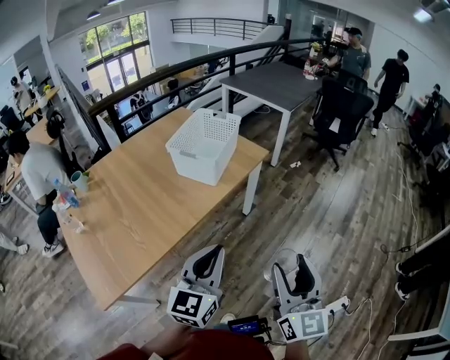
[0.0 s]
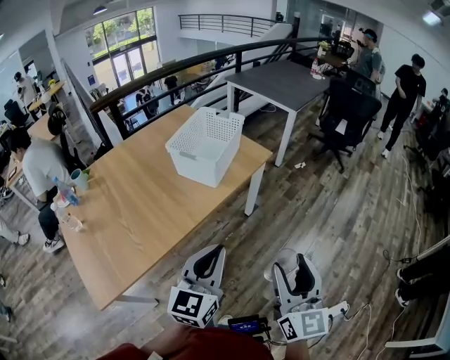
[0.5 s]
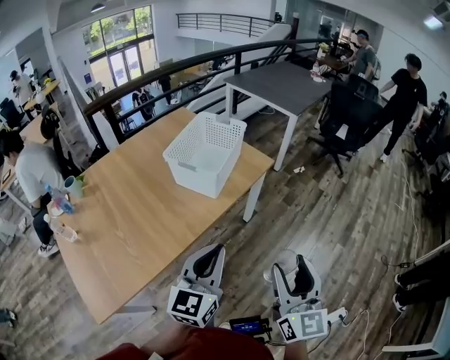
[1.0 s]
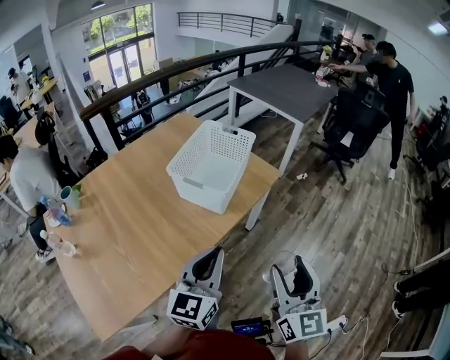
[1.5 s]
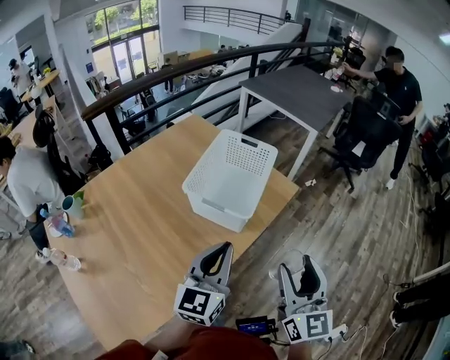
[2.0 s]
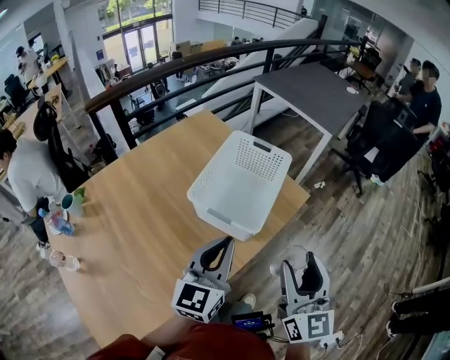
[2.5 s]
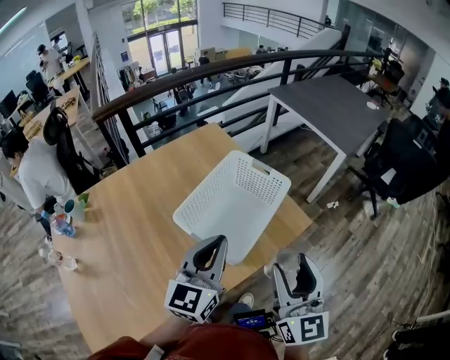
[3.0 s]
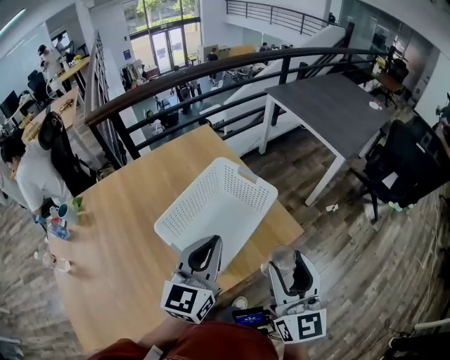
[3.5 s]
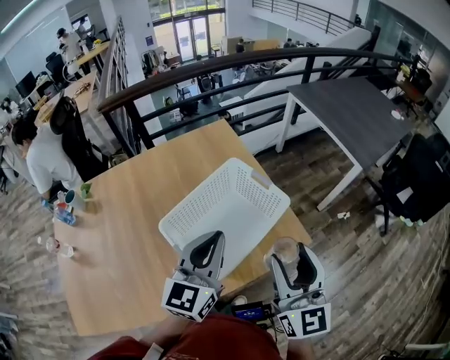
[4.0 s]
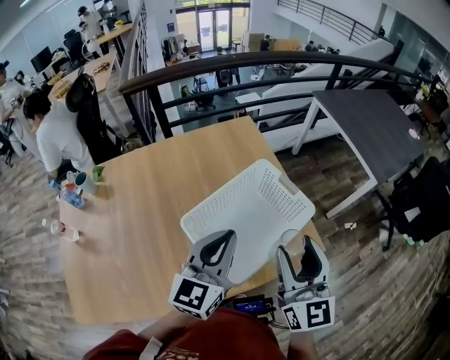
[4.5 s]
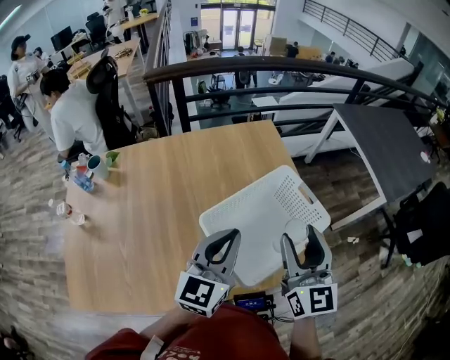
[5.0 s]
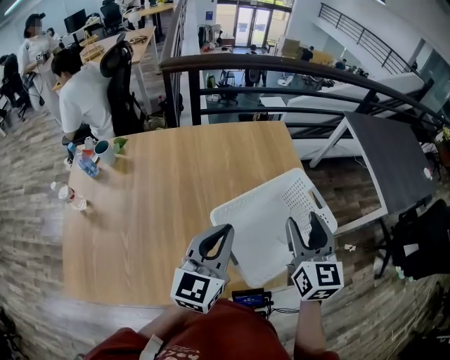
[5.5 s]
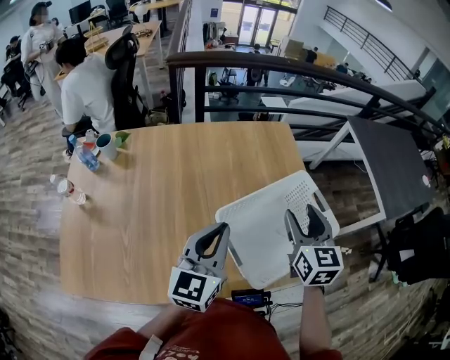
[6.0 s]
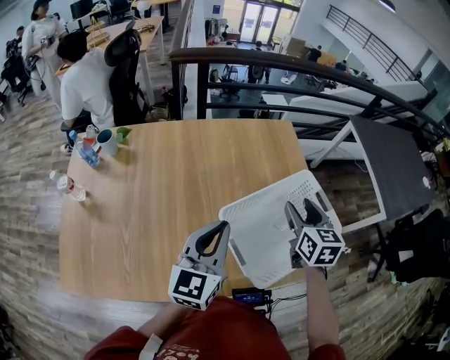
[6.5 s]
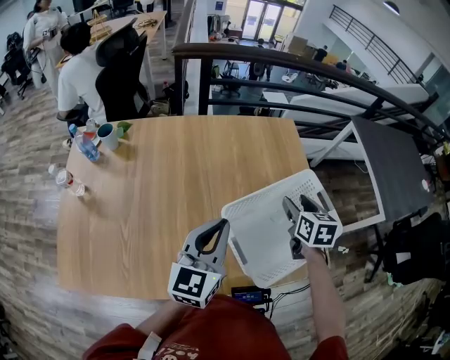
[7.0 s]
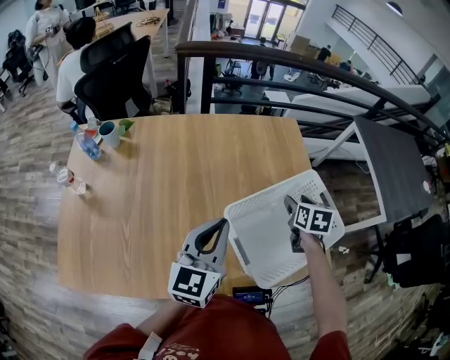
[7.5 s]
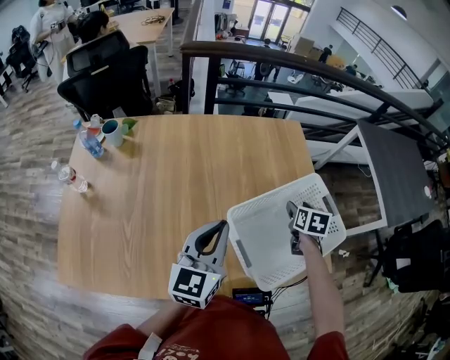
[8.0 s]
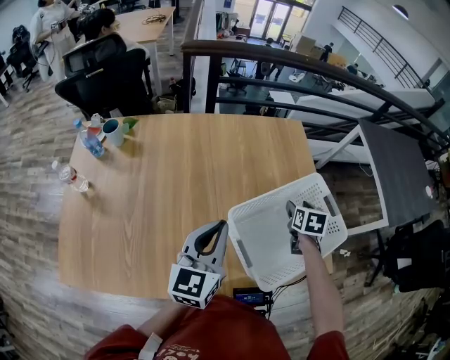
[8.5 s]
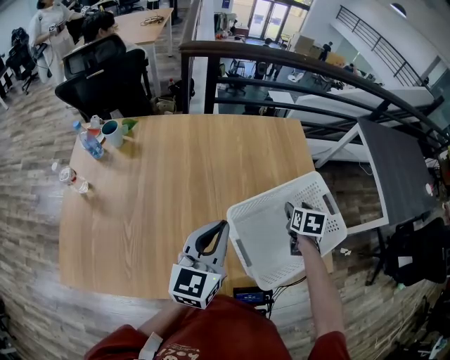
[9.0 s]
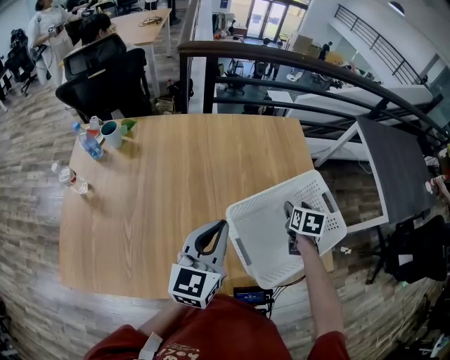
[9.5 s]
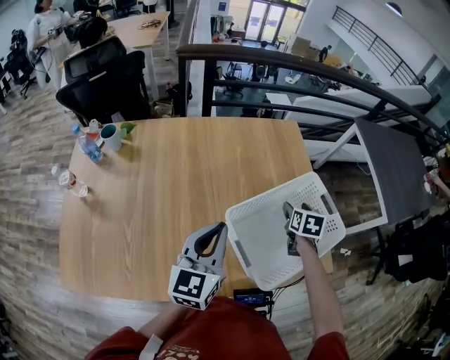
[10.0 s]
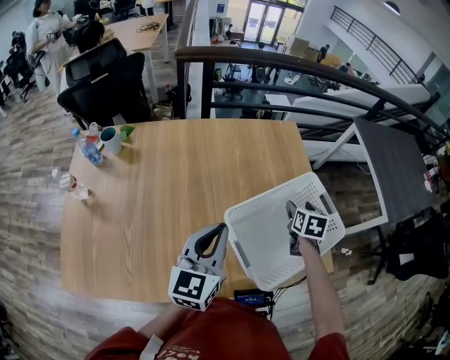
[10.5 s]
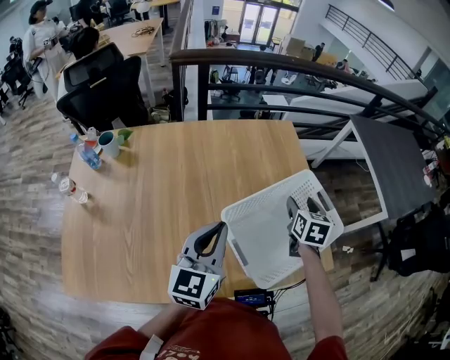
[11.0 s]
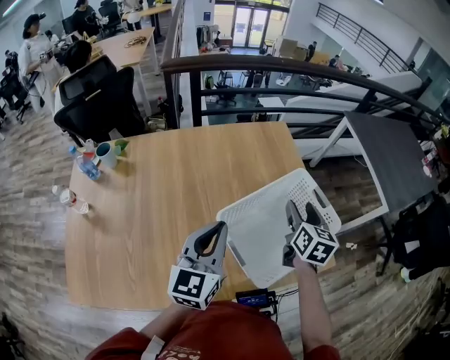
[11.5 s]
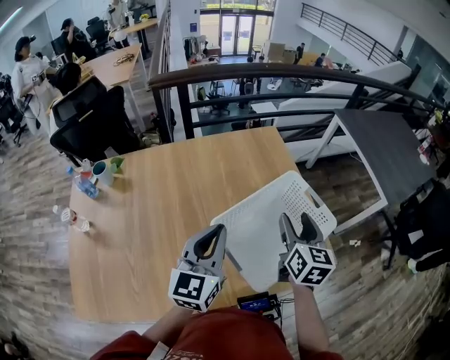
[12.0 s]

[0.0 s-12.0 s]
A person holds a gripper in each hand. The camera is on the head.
0.0 to 2.0 s: The two grippers go about 25 cm forward and to the left.
2.0 to 4.0 s: The two grippers go roughly 25 cm forward. The right gripper swivels some 20 degrees. Meanwhile the left gripper turns by some 20 degrees.
4.0 to 6.0 s: The left gripper shifts about 15 cm to the left. The right gripper shifts roughly 20 cm forward and to the left, and rotates some 20 degrees.
6.0 to 8.0 s: The right gripper goes about 20 cm downward and forward, and angles its fingers downward, by approximately 30 degrees.
8.0 to 10.0 s: There are only small adjustments of the grippers.
10.0 to 12.0 s: The right gripper shifts approximately 15 cm upward and backward, and rotates about 30 degrees.

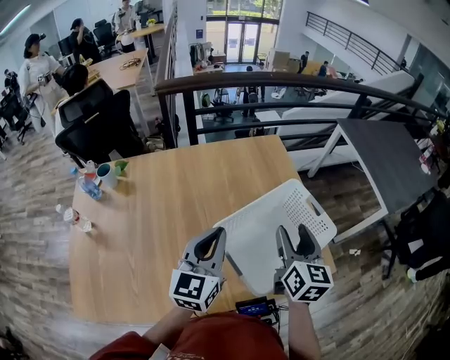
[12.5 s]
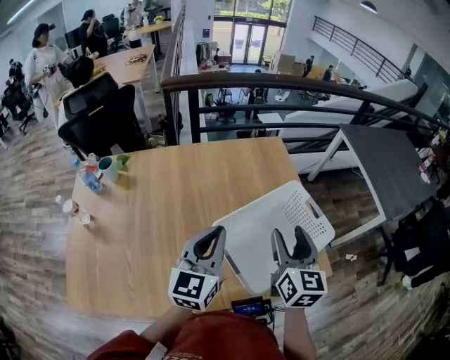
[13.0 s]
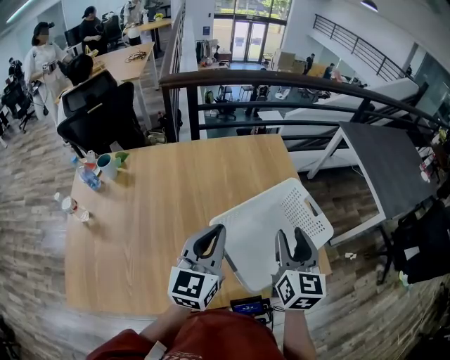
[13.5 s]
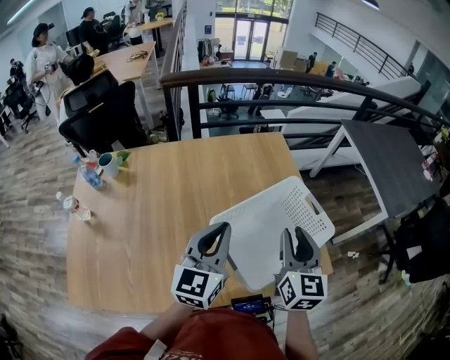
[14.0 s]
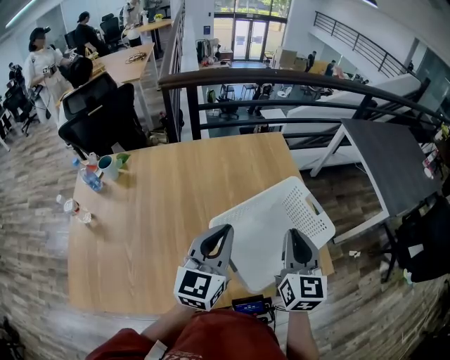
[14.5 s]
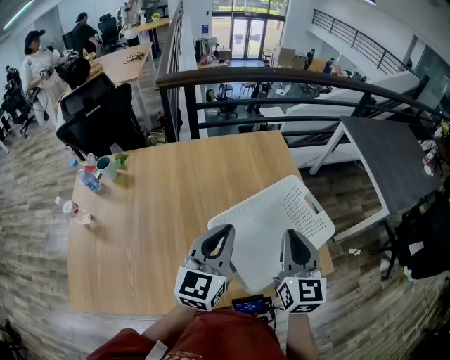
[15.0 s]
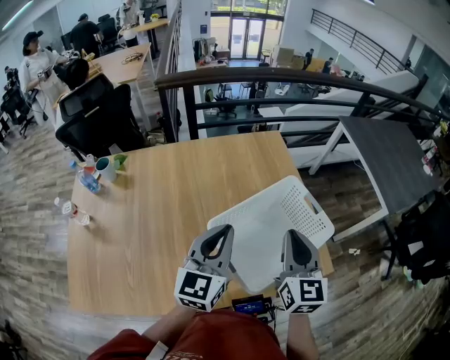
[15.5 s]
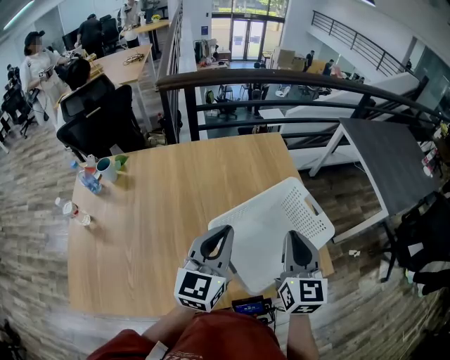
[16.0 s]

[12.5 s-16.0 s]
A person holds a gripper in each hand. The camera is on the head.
12.5 to 14.5 s: The right gripper closes its fingers.
14.5 to 16.0 s: Both grippers stay about where they are.

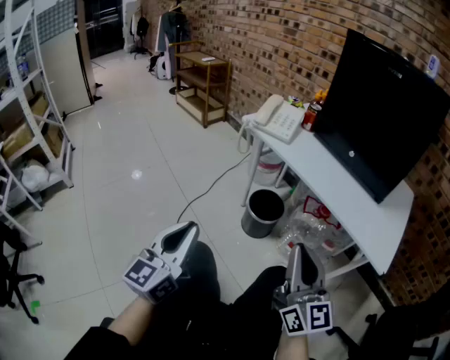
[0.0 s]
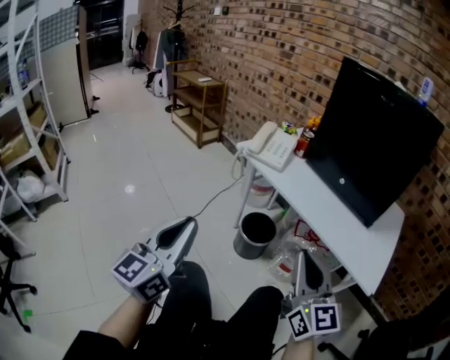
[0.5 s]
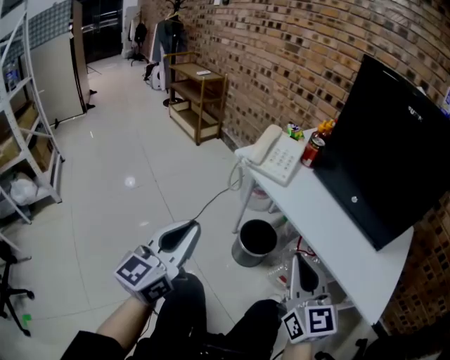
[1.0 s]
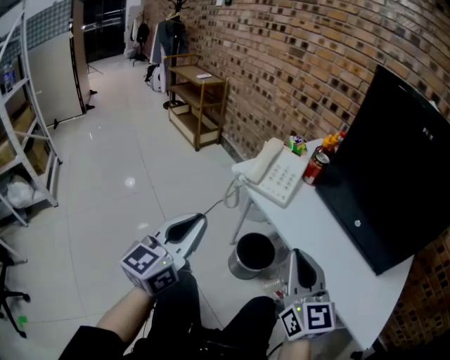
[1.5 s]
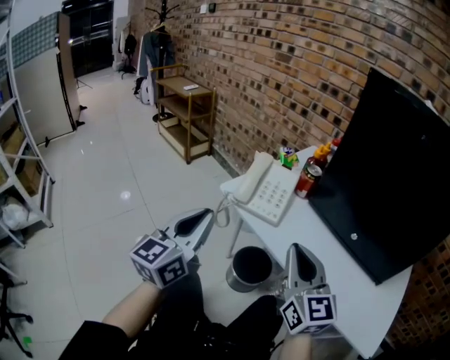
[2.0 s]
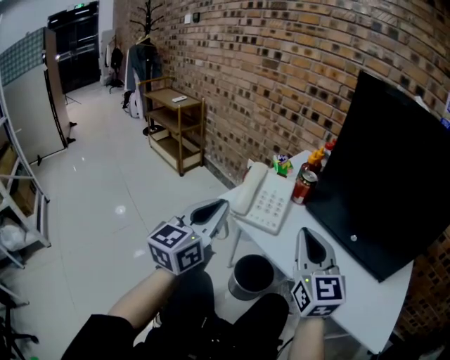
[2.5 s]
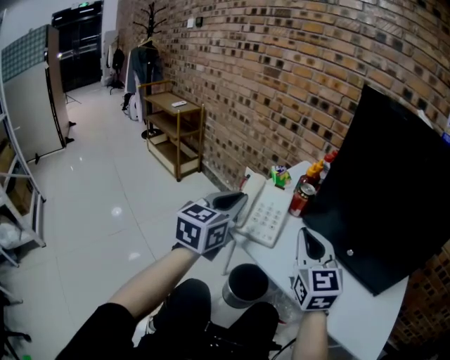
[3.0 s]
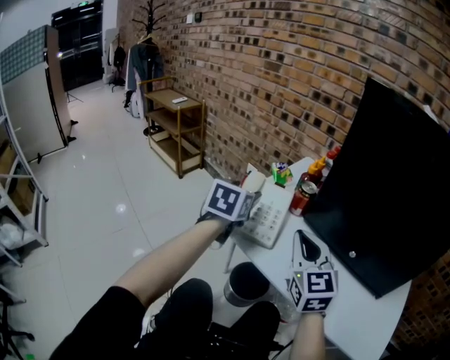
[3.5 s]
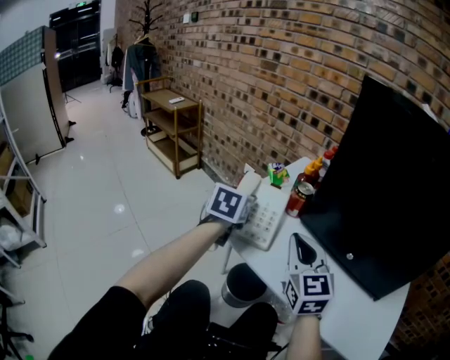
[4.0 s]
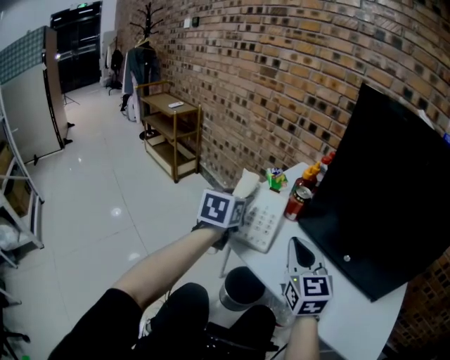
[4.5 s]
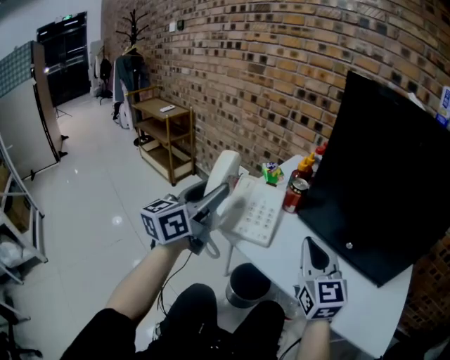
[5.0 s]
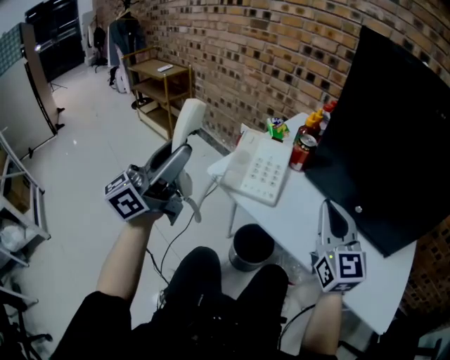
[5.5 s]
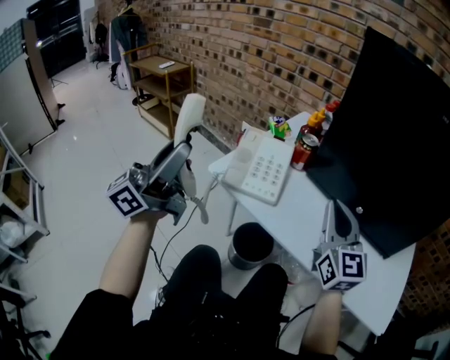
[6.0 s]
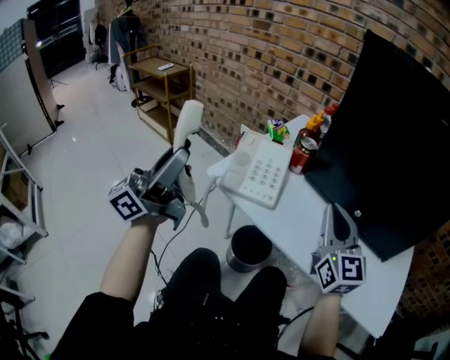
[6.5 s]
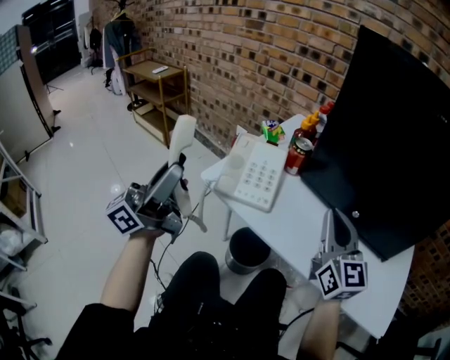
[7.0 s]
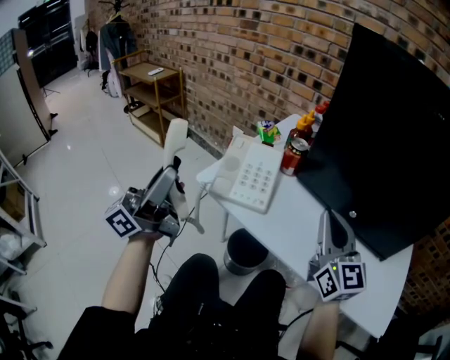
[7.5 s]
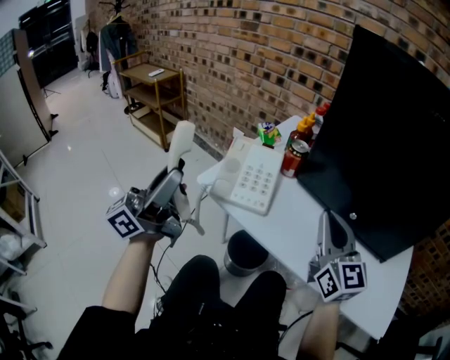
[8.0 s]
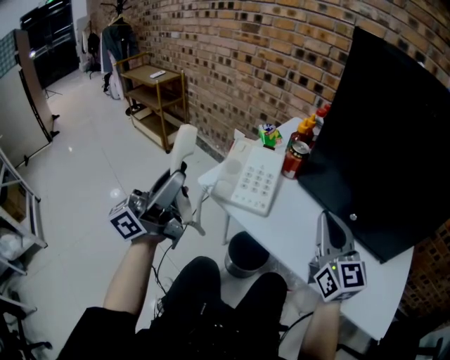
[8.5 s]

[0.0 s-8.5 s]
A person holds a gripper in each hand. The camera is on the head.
0.0 to 2.0 s: Both grippers move forward, some 30 cm.
2.0 to 4.0 s: The left gripper shifts roughly 25 cm forward, angles its fingers downward, by roughly 30 degrees, and opens its fingers. Meanwhile the right gripper moves forward, some 10 cm.
4.0 to 6.5 s: The right gripper goes approximately 5 cm to the right. Meanwhile the left gripper shifts some 25 cm backward, upward and to the left, and tips its fingers upward by about 70 degrees.
6.5 to 8.5 s: The grippers make only small movements.

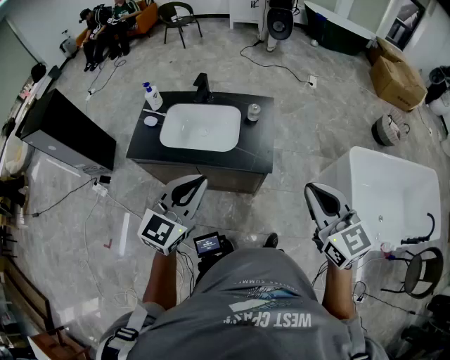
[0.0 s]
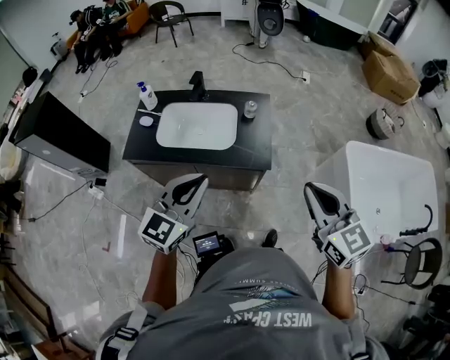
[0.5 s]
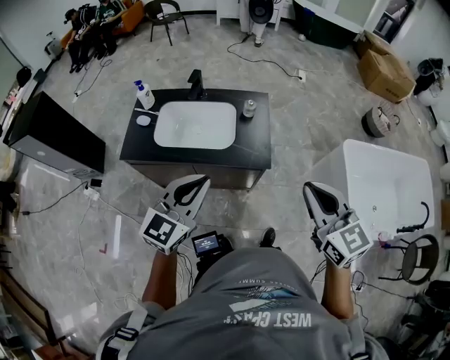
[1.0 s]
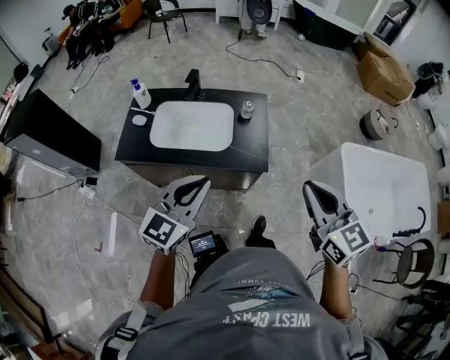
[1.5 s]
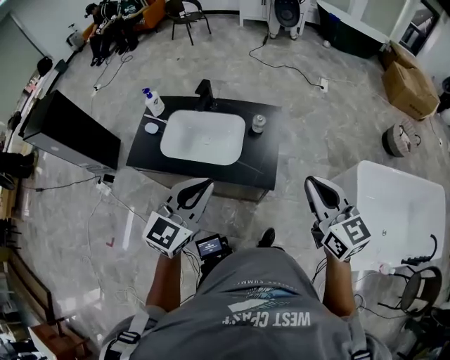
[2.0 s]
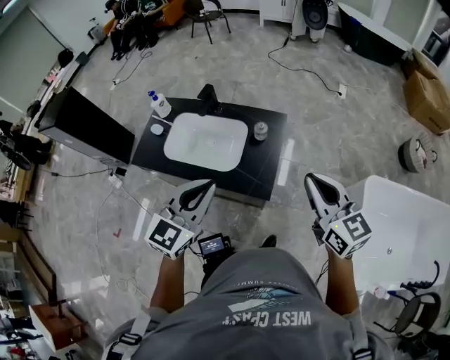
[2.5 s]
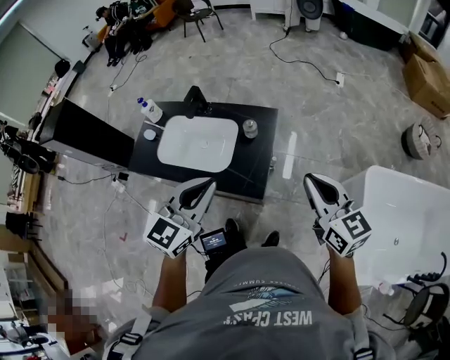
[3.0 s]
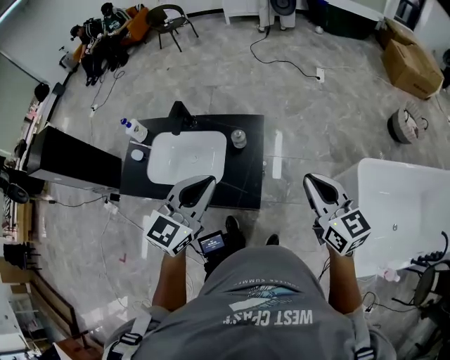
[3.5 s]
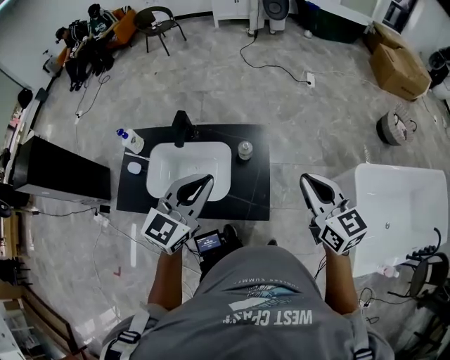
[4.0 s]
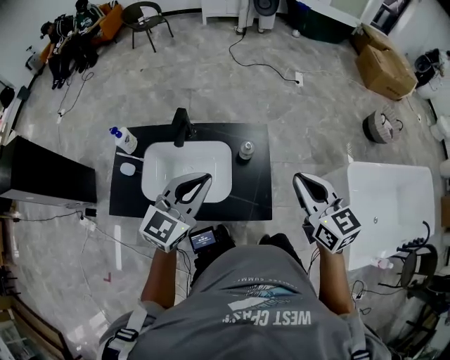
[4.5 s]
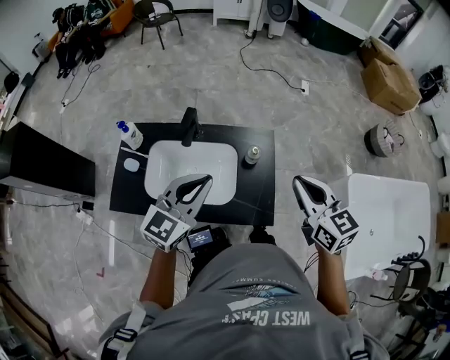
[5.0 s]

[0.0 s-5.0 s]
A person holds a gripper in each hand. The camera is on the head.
0.0 to 2.5 s: The right gripper shifts roughly 15 cm forward. The left gripper shifts roughly 10 cm forward and to the right.
2.5 to 5.0 s: Both grippers travel together forward and to the left, some 15 cm.
